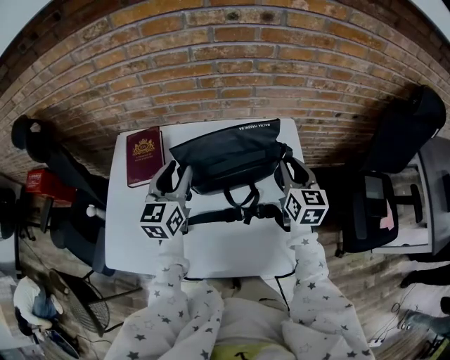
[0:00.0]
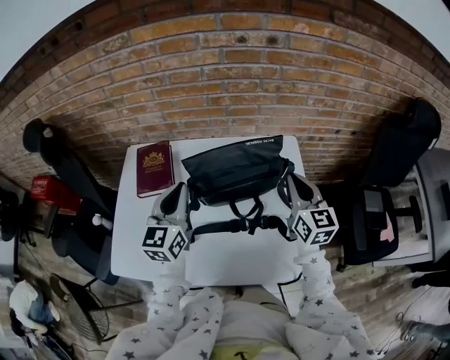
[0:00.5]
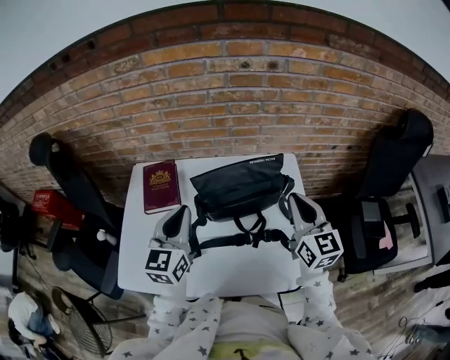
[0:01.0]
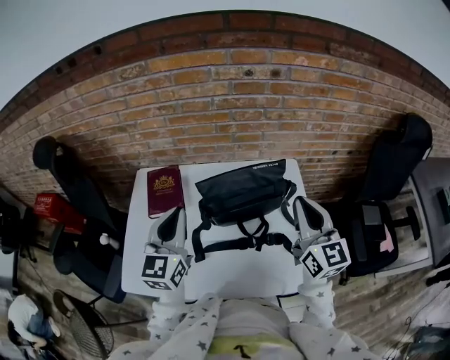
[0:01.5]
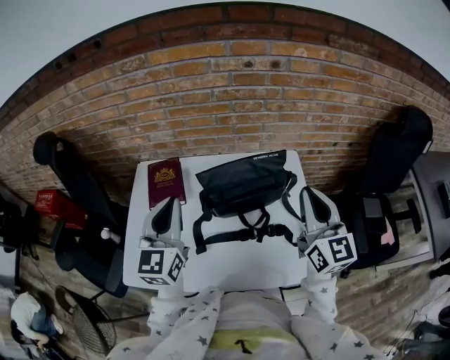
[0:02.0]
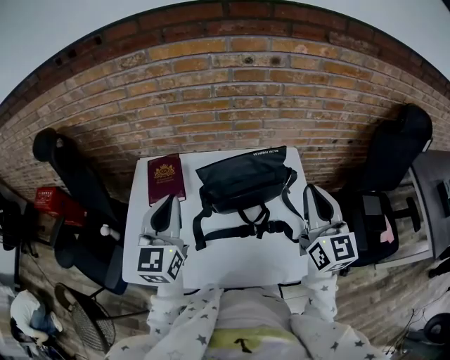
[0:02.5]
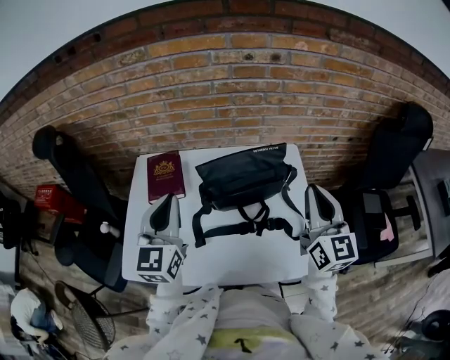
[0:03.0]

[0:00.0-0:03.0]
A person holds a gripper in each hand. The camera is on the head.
0:00.0 to 0:01.5: Both grippers travel together upward and backward, some 15 cm. The left gripper closes up. Meanwhile the right gripper closes its fingers.
0:01.5 to 0:03.0: The grippers stay close to where they were, moving slightly.

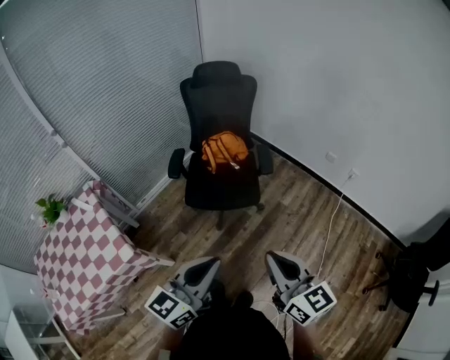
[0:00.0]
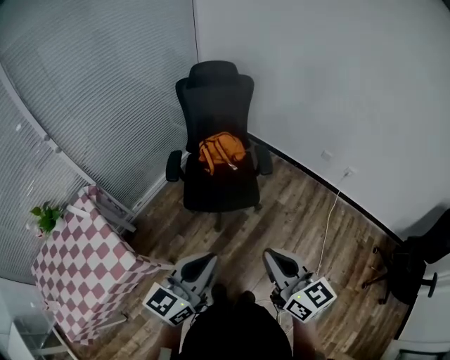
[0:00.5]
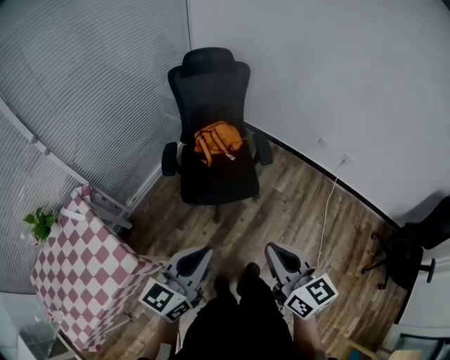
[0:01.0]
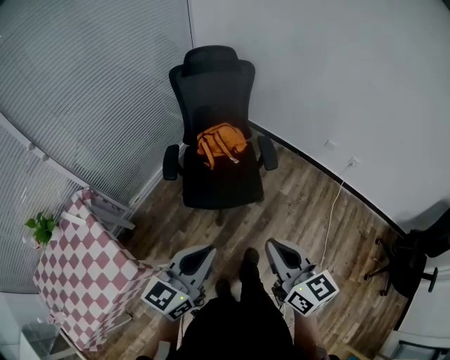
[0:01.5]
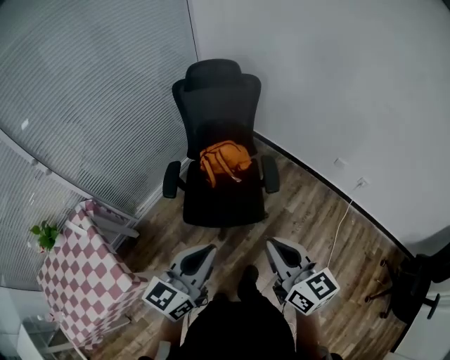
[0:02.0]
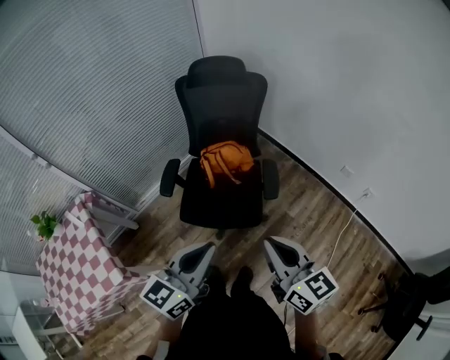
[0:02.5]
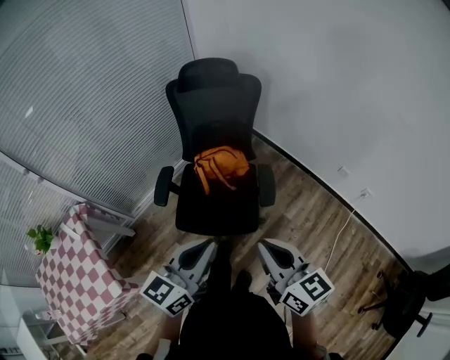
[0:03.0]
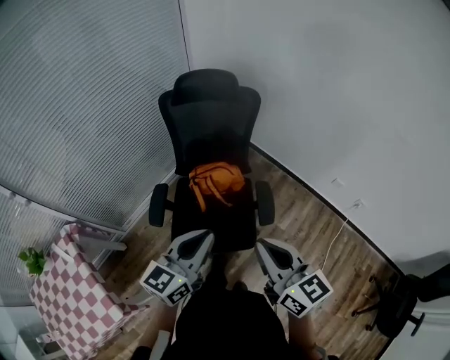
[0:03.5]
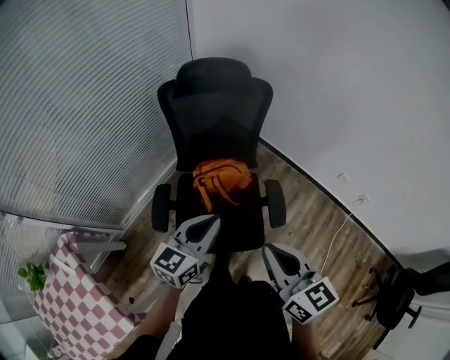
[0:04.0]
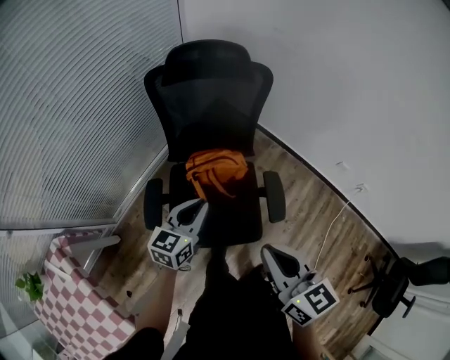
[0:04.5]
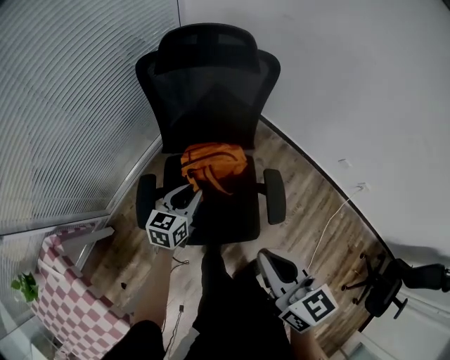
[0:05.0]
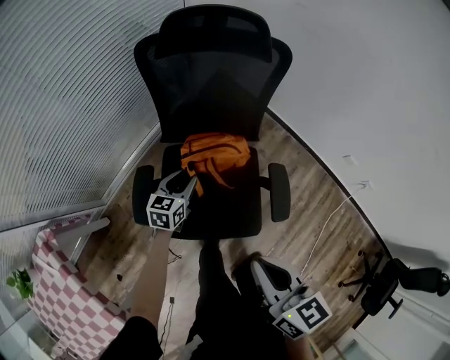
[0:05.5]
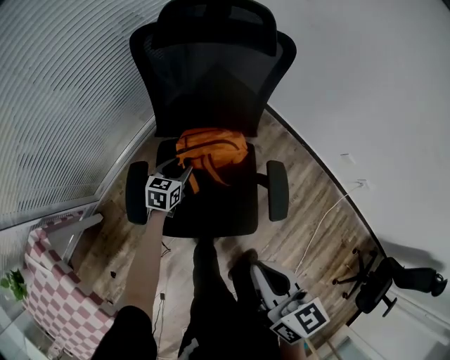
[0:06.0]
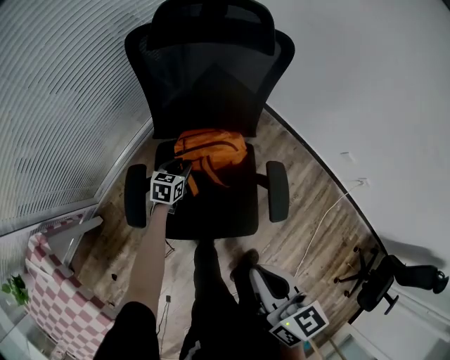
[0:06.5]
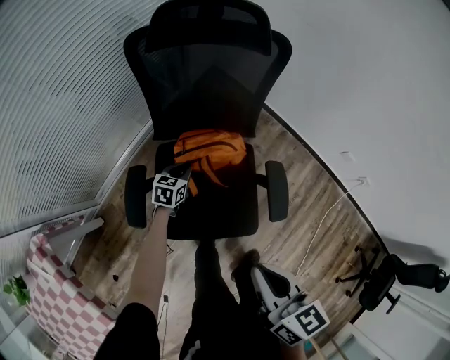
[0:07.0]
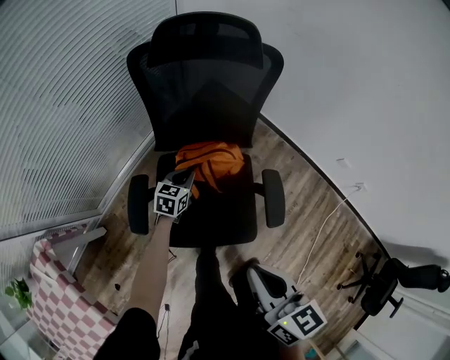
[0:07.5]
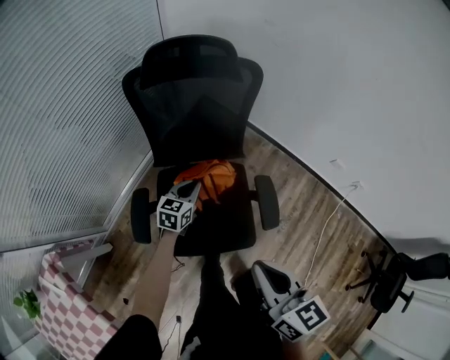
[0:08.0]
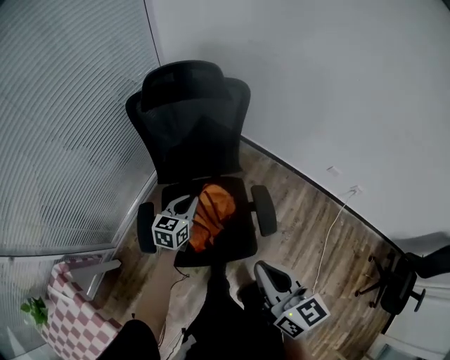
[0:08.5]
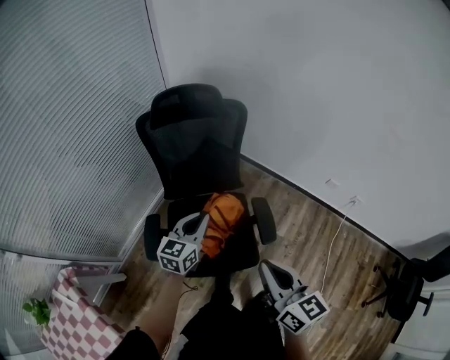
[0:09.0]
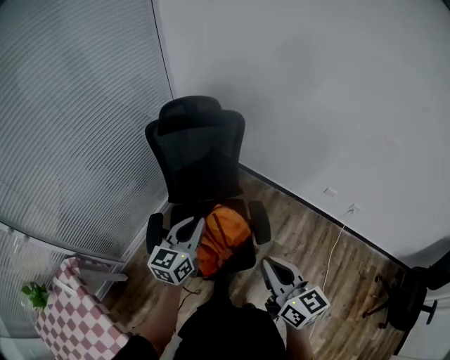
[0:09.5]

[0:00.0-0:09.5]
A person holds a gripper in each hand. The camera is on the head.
0:00.0 to 0:02.0: Both grippers move forward, some 20 cm.
0:02.0 to 0:04.0: Both grippers travel together forward, about 30 cm.
0:04.0 to 0:05.5: The left gripper shifts approximately 35 cm downward and forward, swivels about 20 degrees, and opens up. Meanwhile the right gripper heads downward and forward, covering approximately 10 cm.
0:05.5 to 0:07.5: The left gripper goes approximately 5 cm downward, and closes.
0:07.5 to 0:09.5: The left gripper heads upward and backward, covering about 40 cm, and angles its fingers upward, by roughly 30 degrees, while the right gripper moves to the right, backward and upward, roughly 20 cm.

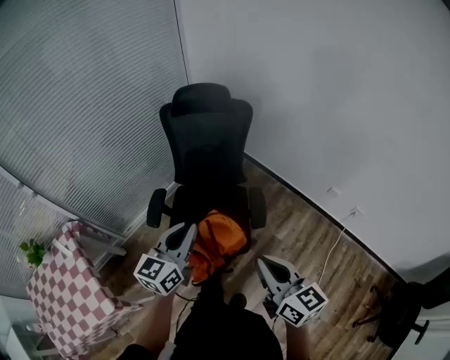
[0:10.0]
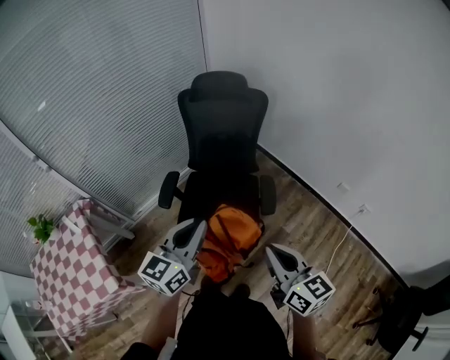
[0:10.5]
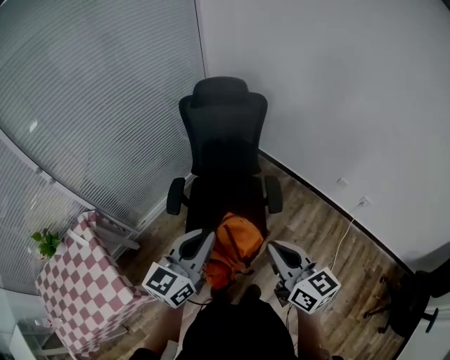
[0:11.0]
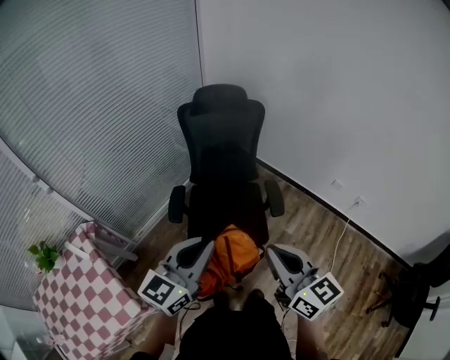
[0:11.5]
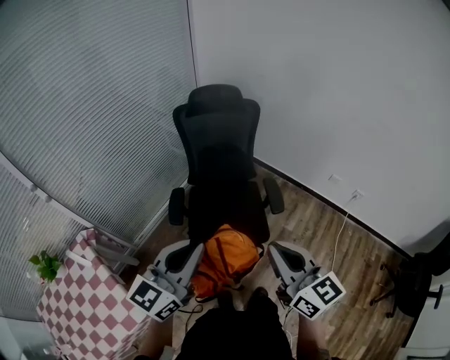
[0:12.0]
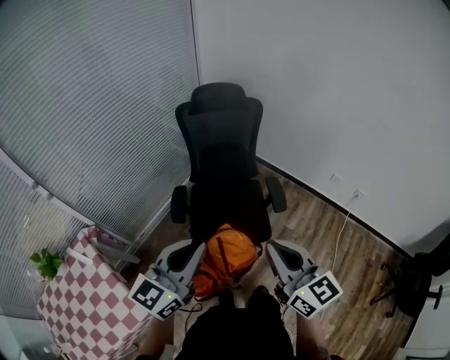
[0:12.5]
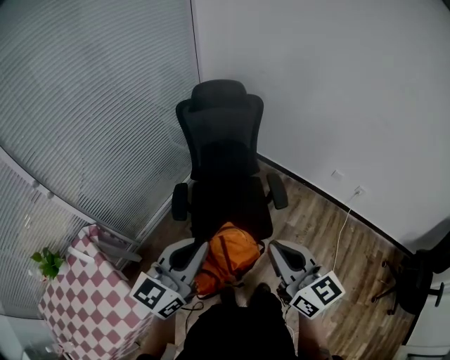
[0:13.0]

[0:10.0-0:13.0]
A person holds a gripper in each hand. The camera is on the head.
0:10.0 to 0:11.5: The left gripper travels backward, to the left and upward by about 20 cm. The right gripper travels to the left, backward and upward by roughly 15 cm.
0:11.5 to 0:13.0: The grippers stay close to where they were, moving slightly.

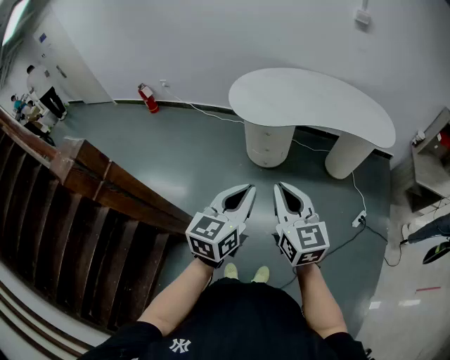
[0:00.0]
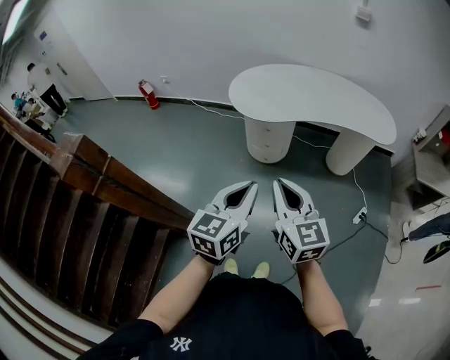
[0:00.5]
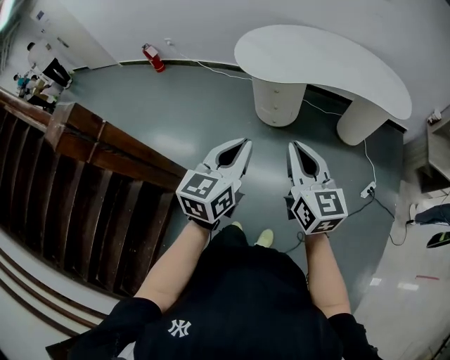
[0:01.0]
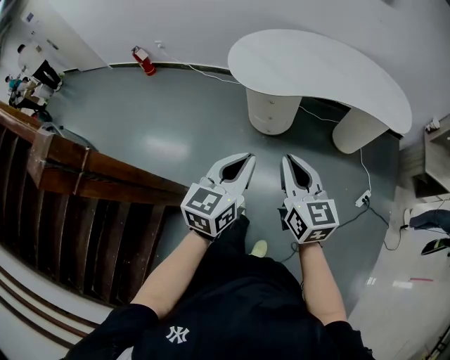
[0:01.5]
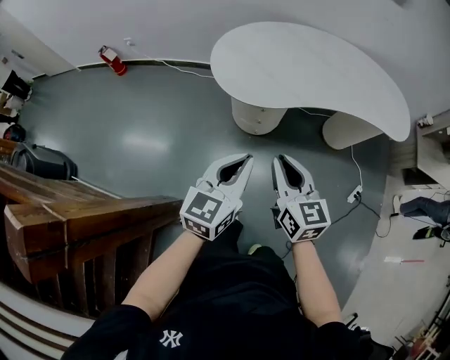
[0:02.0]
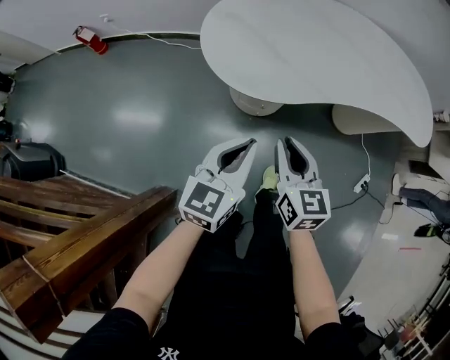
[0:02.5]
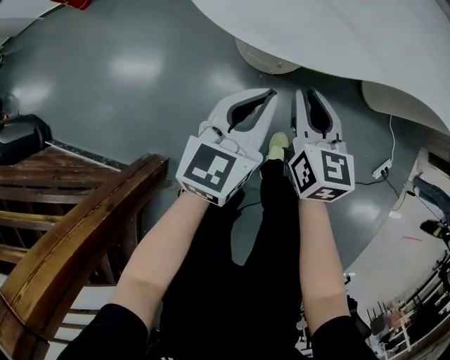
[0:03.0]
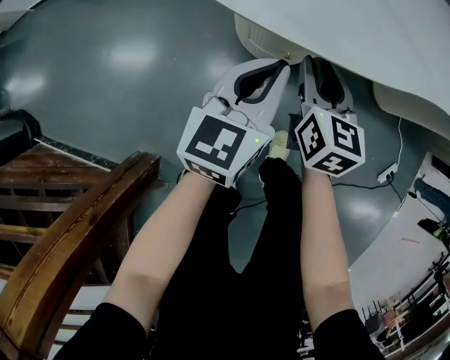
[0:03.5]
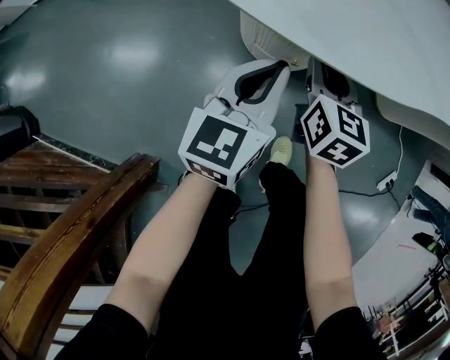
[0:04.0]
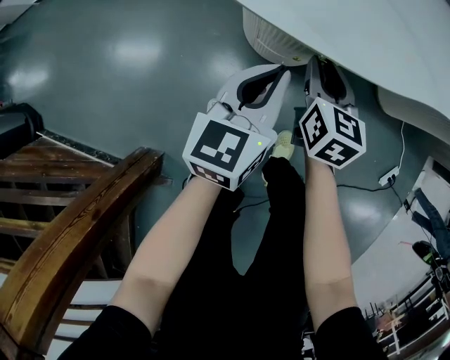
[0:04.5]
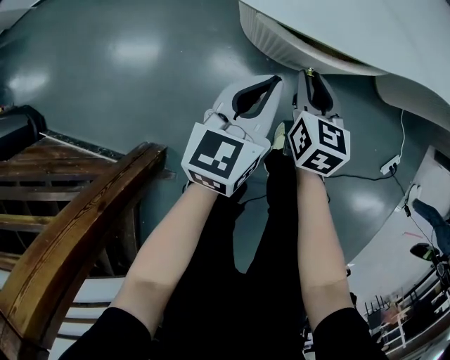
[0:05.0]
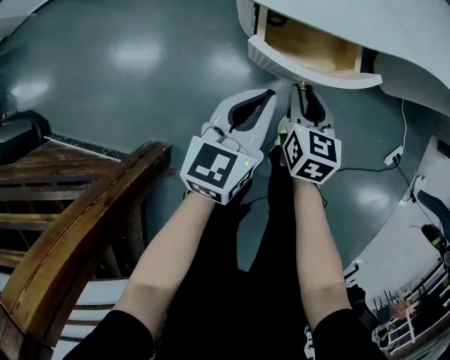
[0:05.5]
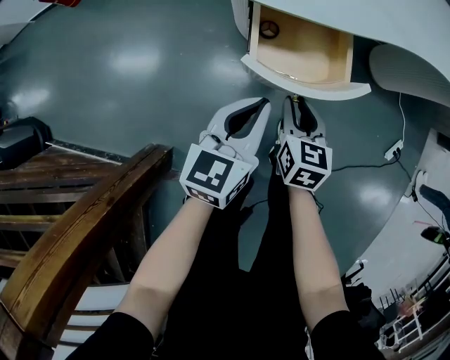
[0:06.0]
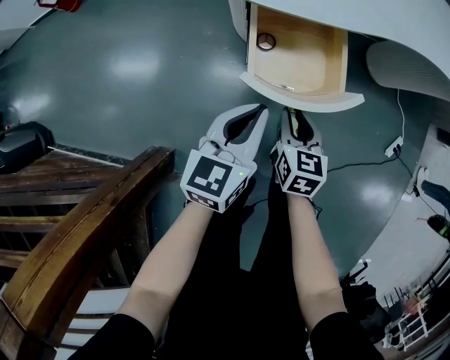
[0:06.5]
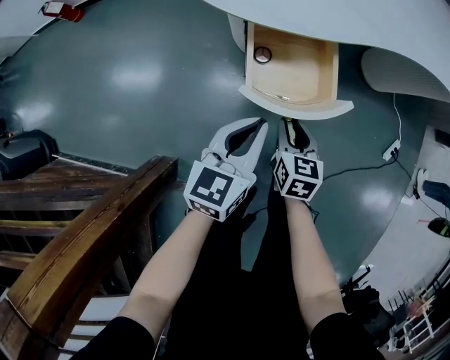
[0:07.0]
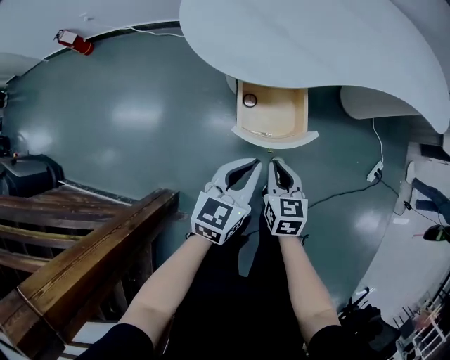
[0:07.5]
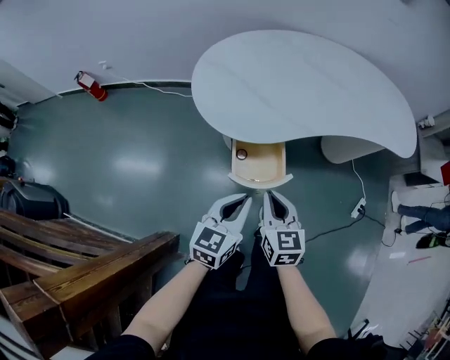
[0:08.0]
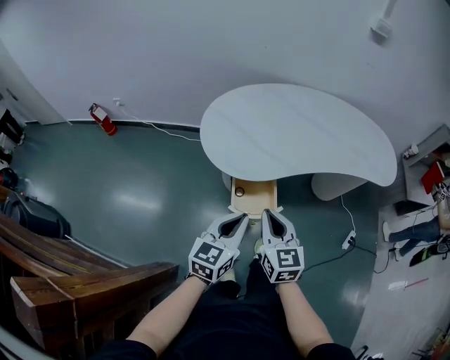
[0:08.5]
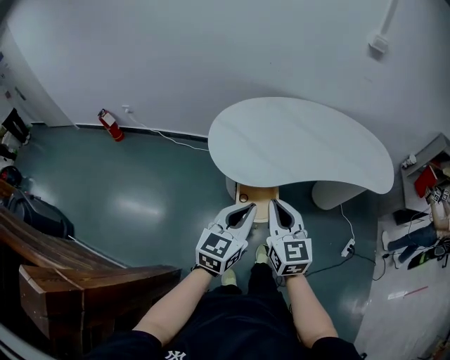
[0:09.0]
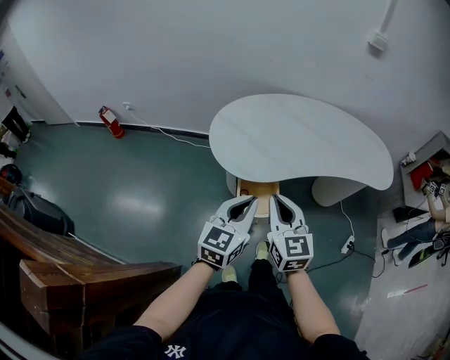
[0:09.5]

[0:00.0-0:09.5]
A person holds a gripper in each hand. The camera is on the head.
0:00.0 to 0:02.0: The left gripper moves forward, about 25 cm. Meanwhile the right gripper goes roughly 30 cm forward and downward.
0:02.0 to 0:04.0: The grippers both shift downward and forward by approximately 50 cm.
0:04.0 to 0:05.5: The two grippers go approximately 10 cm backward.
0:05.5 to 0:07.5: The right gripper moves upward and backward, about 10 cm, while the left gripper heads upward, covering some 10 cm.
0:07.5 to 0:09.5: Both grippers move upward, approximately 35 cm. The right gripper turns by roughly 30 degrees.

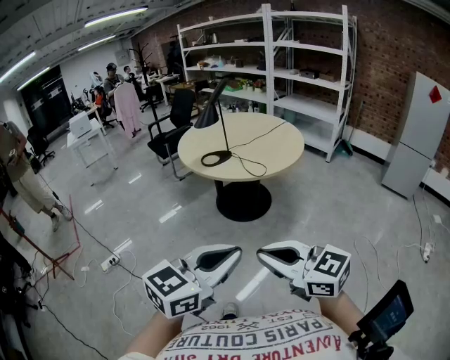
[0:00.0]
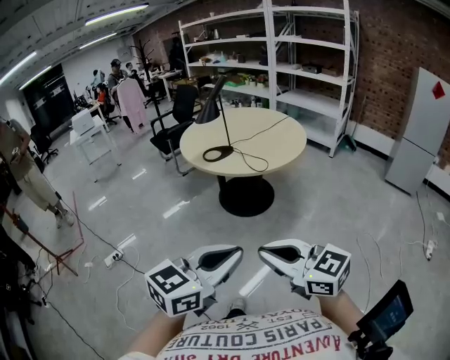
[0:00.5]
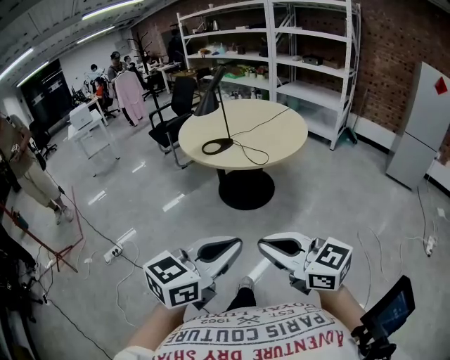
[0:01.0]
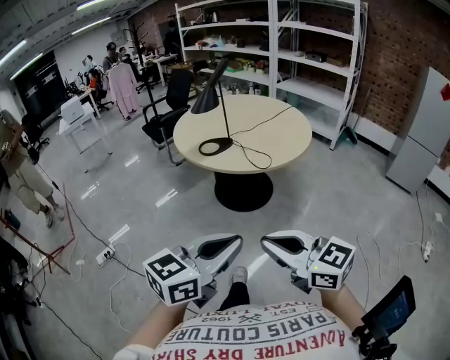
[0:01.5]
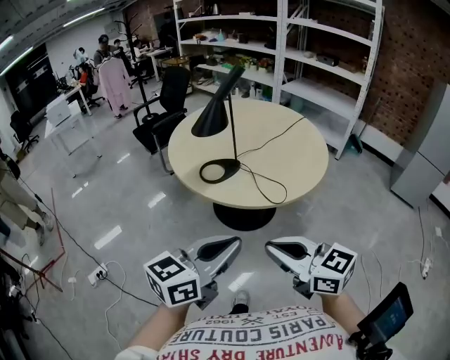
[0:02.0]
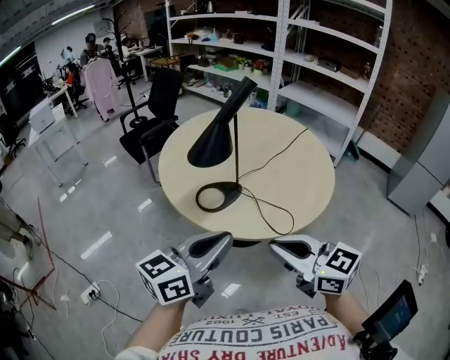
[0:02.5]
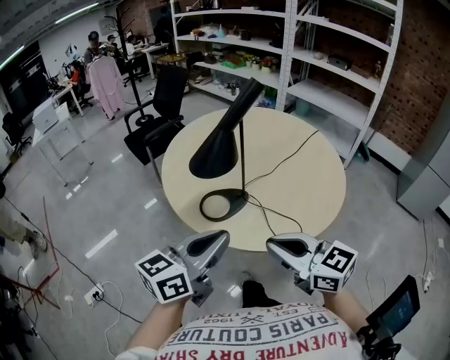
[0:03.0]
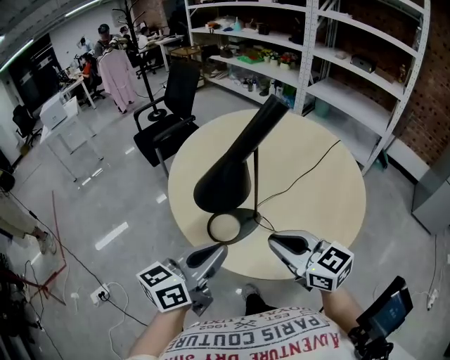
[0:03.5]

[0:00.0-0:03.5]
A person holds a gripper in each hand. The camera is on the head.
0:00.0 to 0:02.0: Both grippers travel together forward, about 30 cm.
0:02.0 to 0:03.5: Both grippers move forward, some 30 cm.
